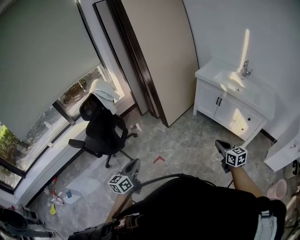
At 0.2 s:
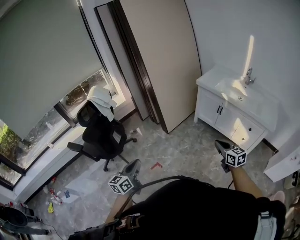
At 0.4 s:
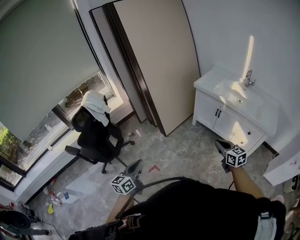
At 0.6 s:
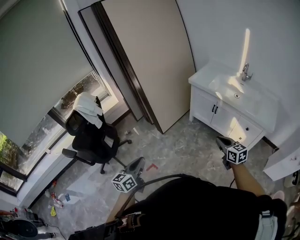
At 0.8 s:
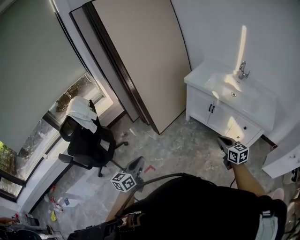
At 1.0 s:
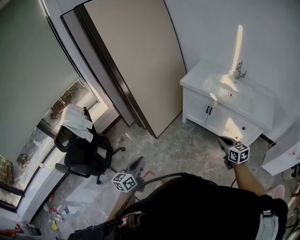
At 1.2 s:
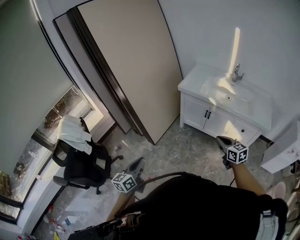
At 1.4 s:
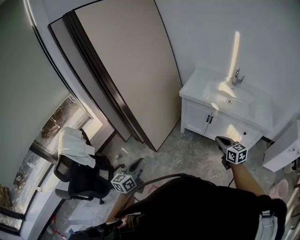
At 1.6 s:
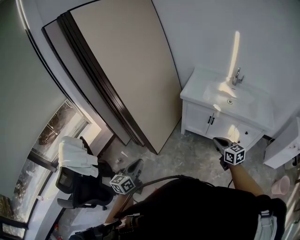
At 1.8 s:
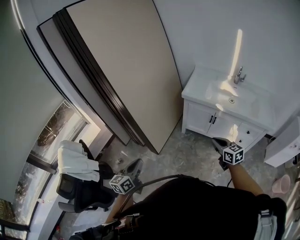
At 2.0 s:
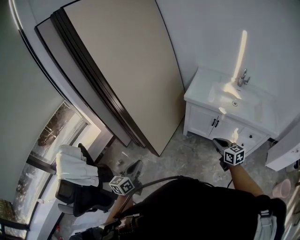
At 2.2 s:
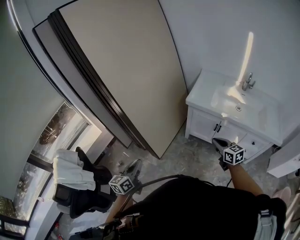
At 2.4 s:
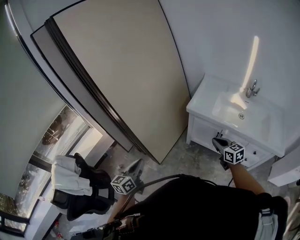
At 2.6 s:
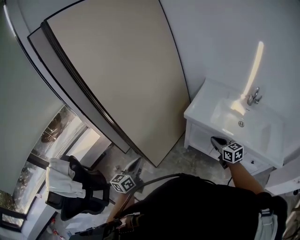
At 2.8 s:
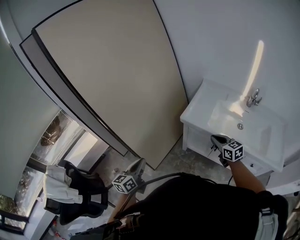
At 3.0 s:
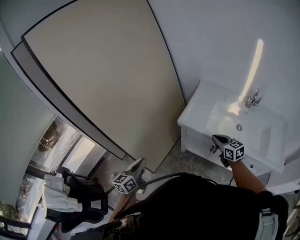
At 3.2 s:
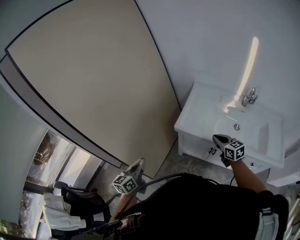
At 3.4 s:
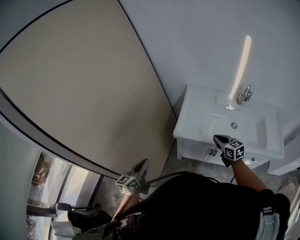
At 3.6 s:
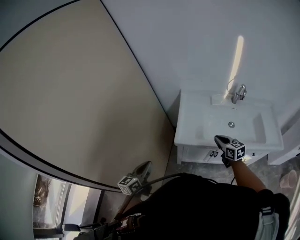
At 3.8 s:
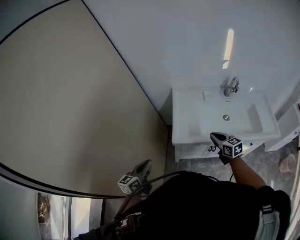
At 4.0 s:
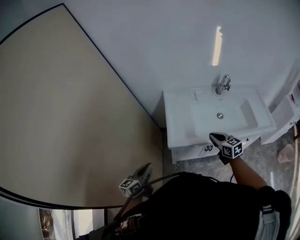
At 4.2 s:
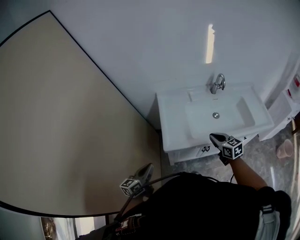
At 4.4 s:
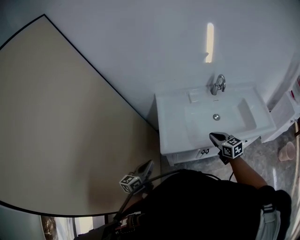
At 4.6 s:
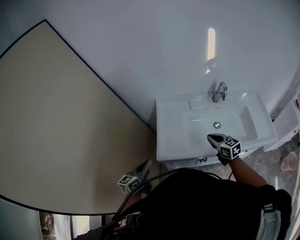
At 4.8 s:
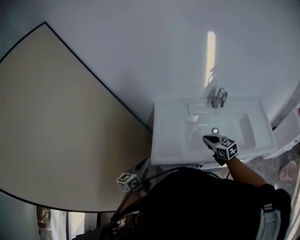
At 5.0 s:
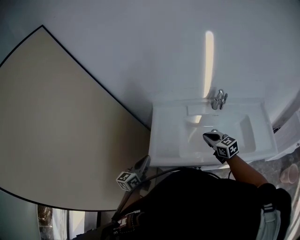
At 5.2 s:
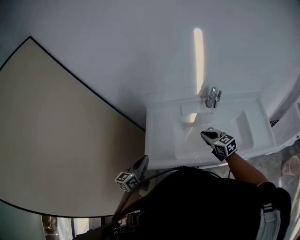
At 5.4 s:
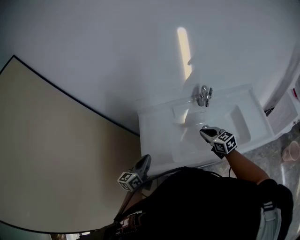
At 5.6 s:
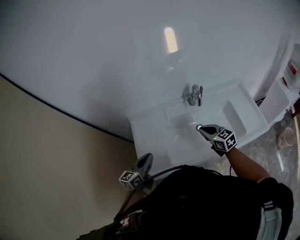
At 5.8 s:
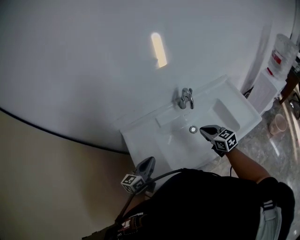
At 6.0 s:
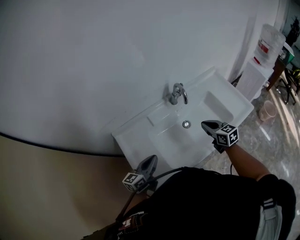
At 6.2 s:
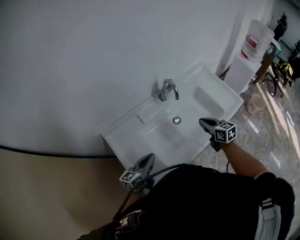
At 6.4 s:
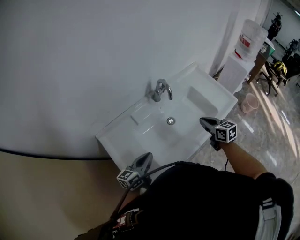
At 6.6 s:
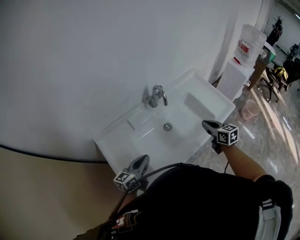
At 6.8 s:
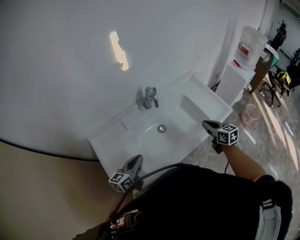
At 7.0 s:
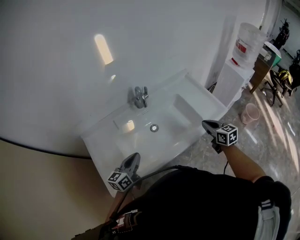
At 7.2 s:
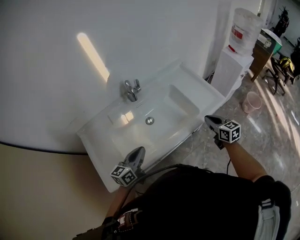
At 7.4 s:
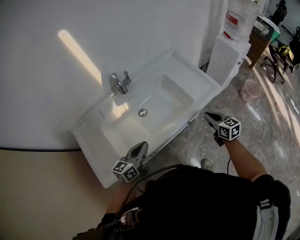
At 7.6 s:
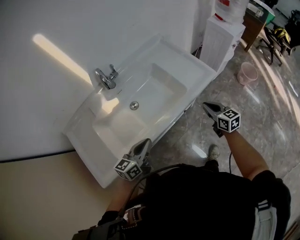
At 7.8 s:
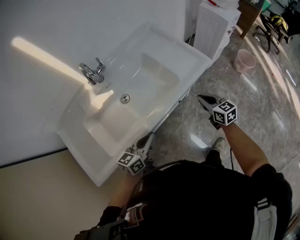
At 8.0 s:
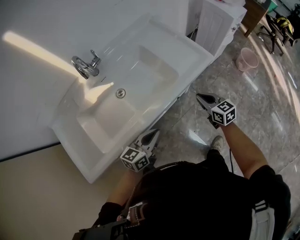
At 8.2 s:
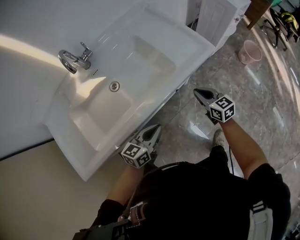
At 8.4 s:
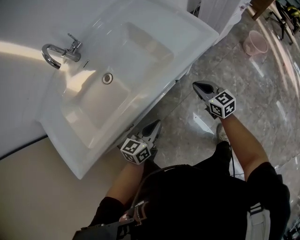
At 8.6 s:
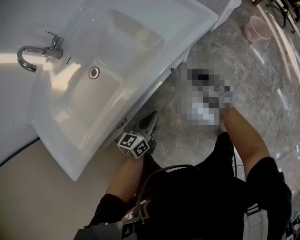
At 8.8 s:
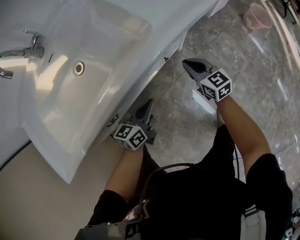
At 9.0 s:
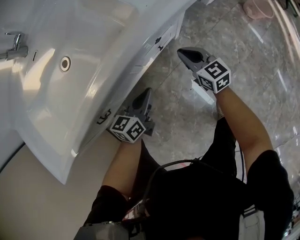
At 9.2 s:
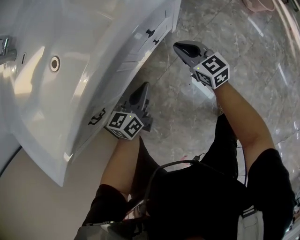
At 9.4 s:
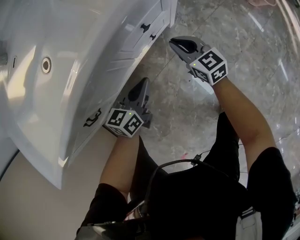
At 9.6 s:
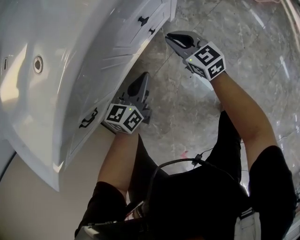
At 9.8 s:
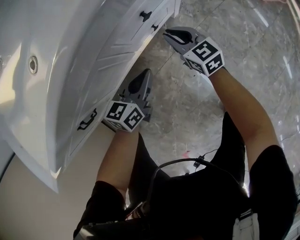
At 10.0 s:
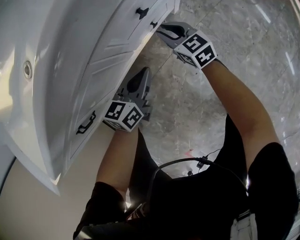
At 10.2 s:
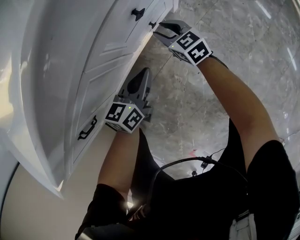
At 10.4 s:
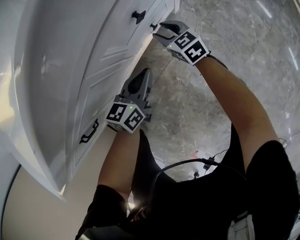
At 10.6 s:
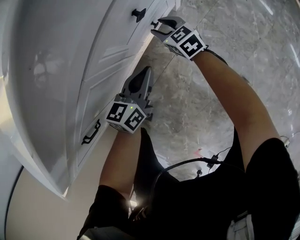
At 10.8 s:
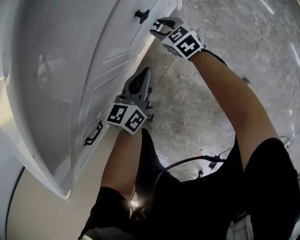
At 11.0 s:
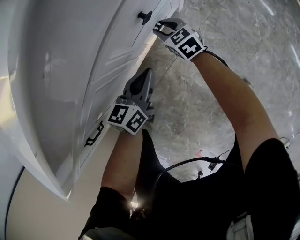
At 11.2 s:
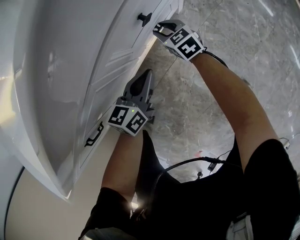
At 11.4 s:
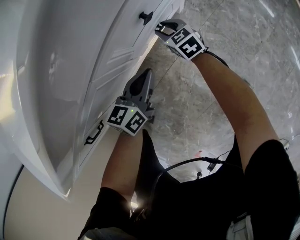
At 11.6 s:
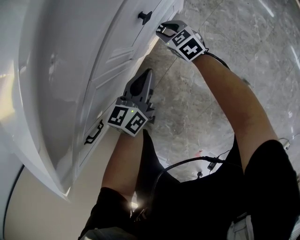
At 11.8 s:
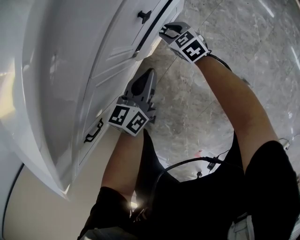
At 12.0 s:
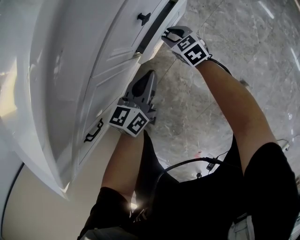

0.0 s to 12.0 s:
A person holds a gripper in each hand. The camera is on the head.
0.0 to 1.6 s: Both grippers move forward, some 40 cm.
1.6 to 3.0 s: The right gripper heads forward, covering roughly 40 cm; the left gripper is displaced forward and to the right by about 40 cm.
3.0 to 4.4 s: The left gripper moves some 35 cm, and swivels roughly 40 degrees; the right gripper ends up approximately 15 cm from where it was, and changes its angle by about 30 degrees.
4.4 to 6.0 s: The right gripper moves approximately 25 cm, and changes its angle by about 20 degrees; the left gripper ends up some 35 cm from where it was, and swivels some 30 degrees.
6.0 to 7.6 s: Both grippers move to the right, roughly 35 cm.
7.6 to 9.0 s: The left gripper shifts some 40 cm downward and to the right. The right gripper travels downward by about 30 cm.
9.0 to 10.4 s: The right gripper travels downward by roughly 25 cm, and opens up, while the left gripper heads downward, covering about 15 cm.
10.4 to 12.0 s: The grippers move only a little.

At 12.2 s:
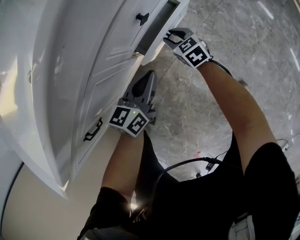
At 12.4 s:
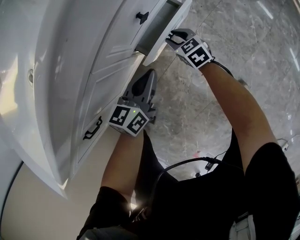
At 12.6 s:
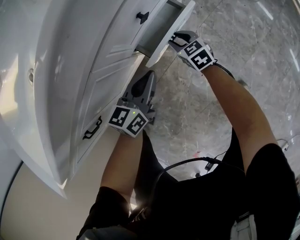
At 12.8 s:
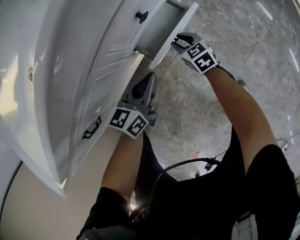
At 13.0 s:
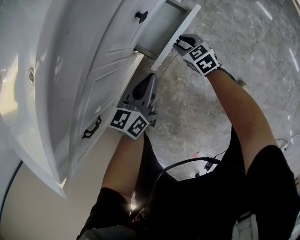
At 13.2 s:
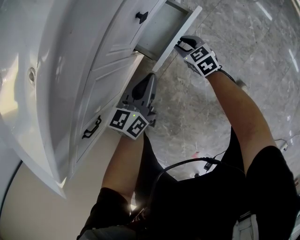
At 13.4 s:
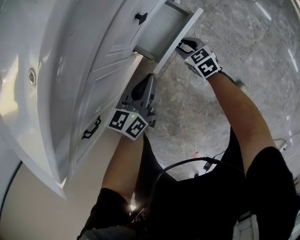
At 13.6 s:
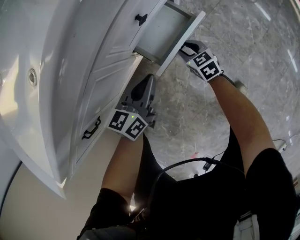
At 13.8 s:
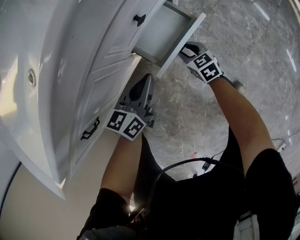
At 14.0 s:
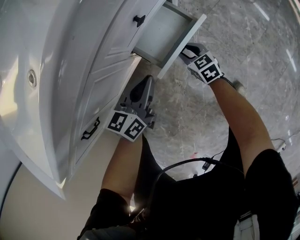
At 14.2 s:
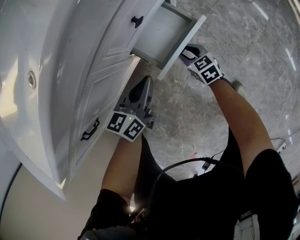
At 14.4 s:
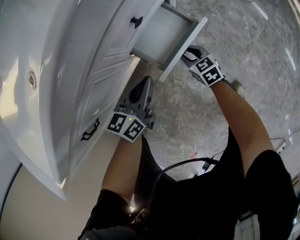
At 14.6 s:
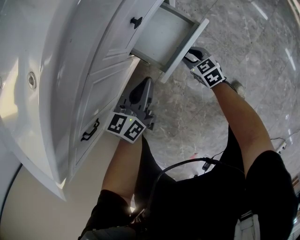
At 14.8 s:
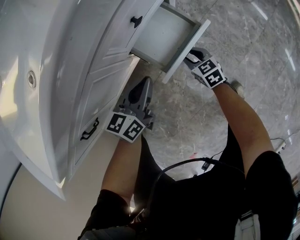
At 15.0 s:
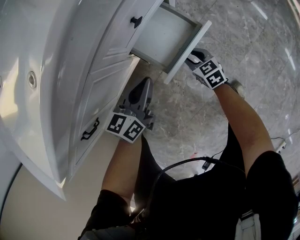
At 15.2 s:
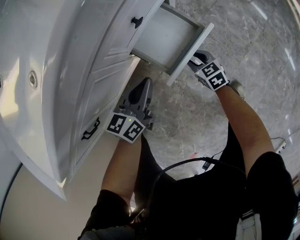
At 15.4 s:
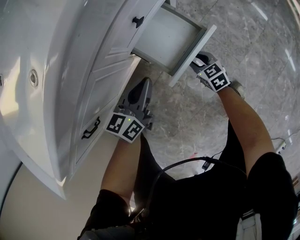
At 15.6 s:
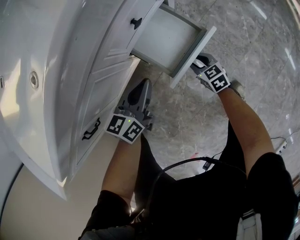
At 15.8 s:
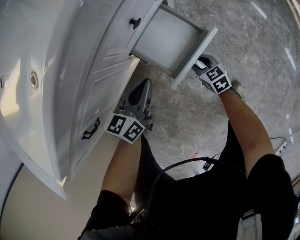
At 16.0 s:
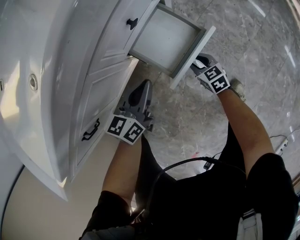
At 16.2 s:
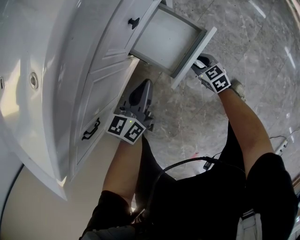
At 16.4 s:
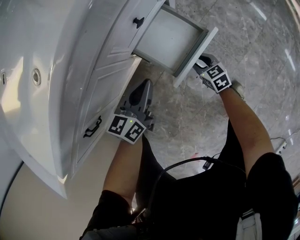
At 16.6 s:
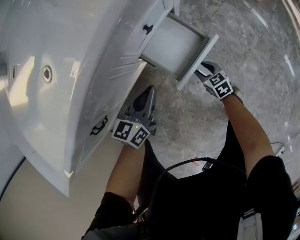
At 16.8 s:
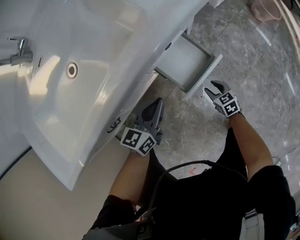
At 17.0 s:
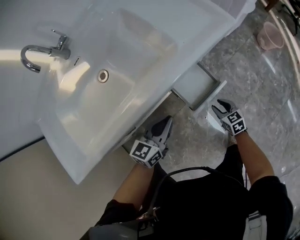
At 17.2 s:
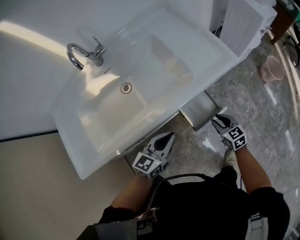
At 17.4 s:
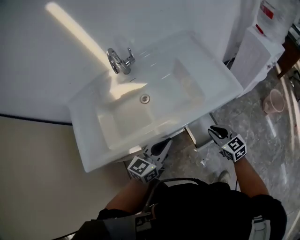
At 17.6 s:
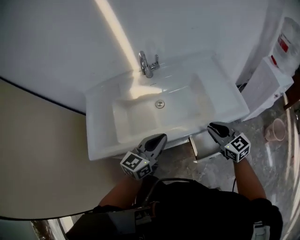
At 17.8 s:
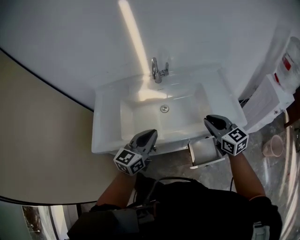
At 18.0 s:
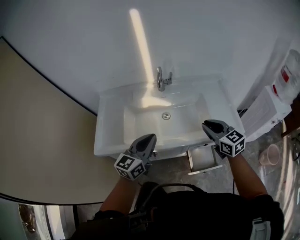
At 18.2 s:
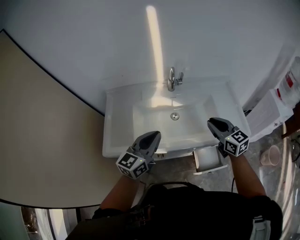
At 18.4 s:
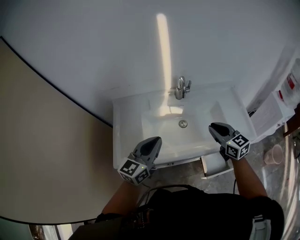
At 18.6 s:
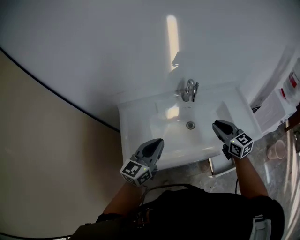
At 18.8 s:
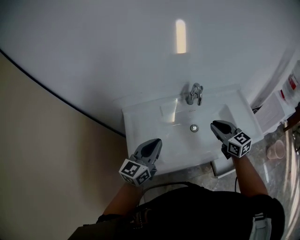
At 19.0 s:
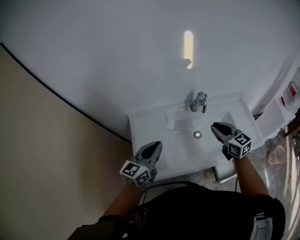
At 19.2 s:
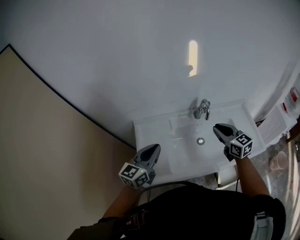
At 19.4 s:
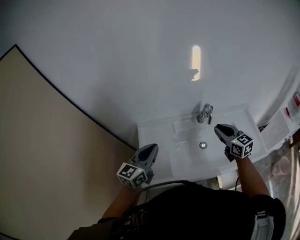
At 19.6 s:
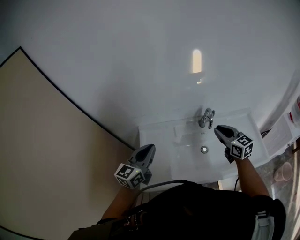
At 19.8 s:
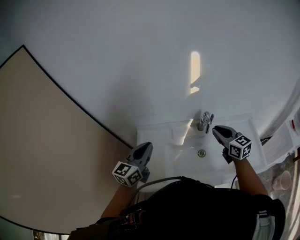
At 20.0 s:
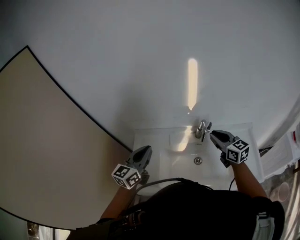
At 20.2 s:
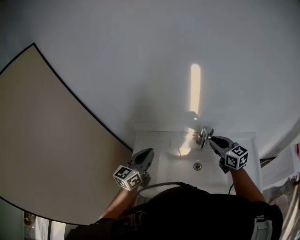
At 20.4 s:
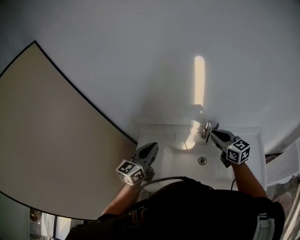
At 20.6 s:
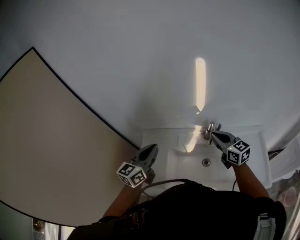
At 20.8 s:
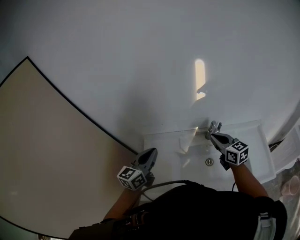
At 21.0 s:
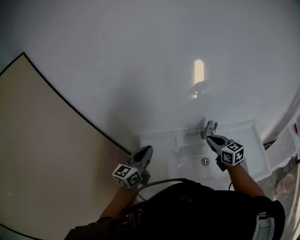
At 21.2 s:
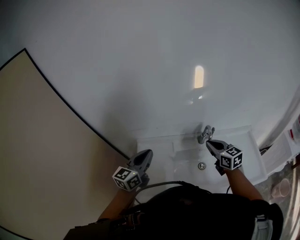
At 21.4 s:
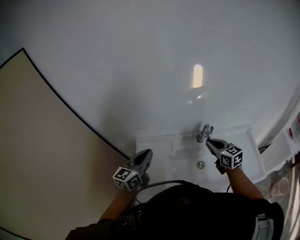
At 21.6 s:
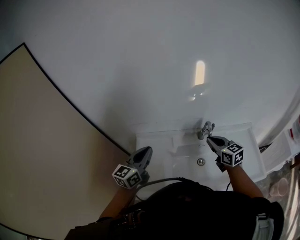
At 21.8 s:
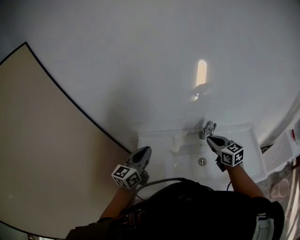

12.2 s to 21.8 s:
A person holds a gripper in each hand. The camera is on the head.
12.2 to 13.8 s: The right gripper is displaced backward and to the right by some 10 cm.
13.8 to 15.4 s: The right gripper changes place by roughly 5 cm.
15.4 to 17.0 s: The grippers both shift upward by approximately 20 cm.
17.0 to 18.6 s: The two grippers go roughly 50 cm upward. The left gripper swivels approximately 30 degrees. The right gripper tips its fingers upward by approximately 30 degrees, and closes.
18.6 to 20.2 s: The grippers both shift forward and upward by about 15 cm. The left gripper reaches roughly 10 cm to the left, then returns.
20.2 to 21.8 s: Both grippers move to the left, about 10 cm.

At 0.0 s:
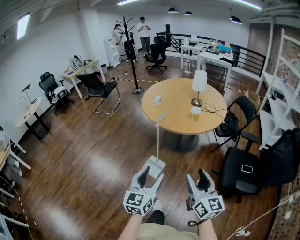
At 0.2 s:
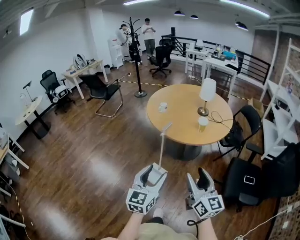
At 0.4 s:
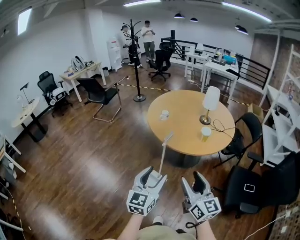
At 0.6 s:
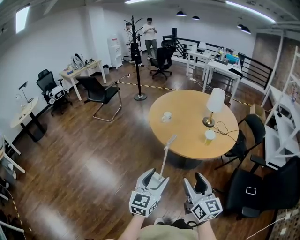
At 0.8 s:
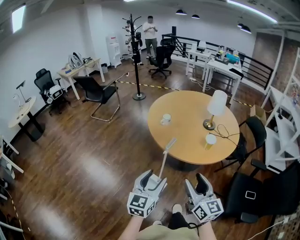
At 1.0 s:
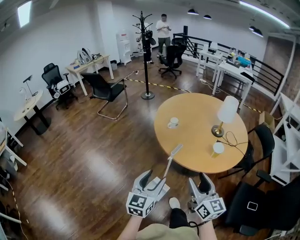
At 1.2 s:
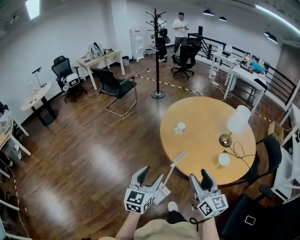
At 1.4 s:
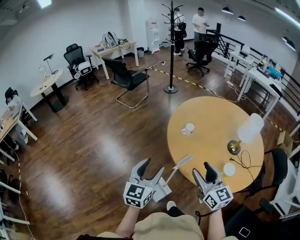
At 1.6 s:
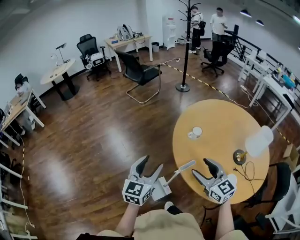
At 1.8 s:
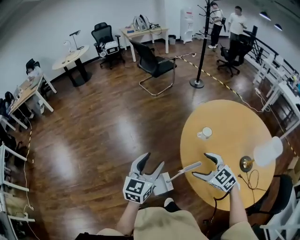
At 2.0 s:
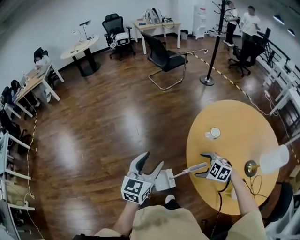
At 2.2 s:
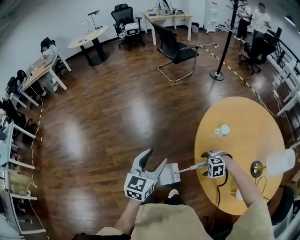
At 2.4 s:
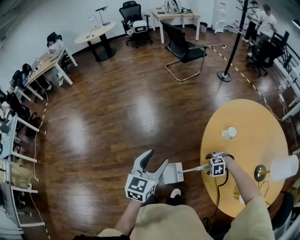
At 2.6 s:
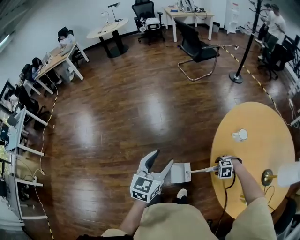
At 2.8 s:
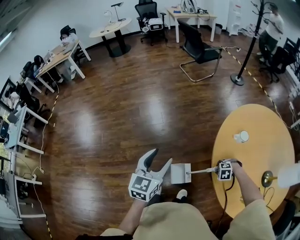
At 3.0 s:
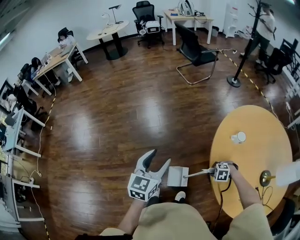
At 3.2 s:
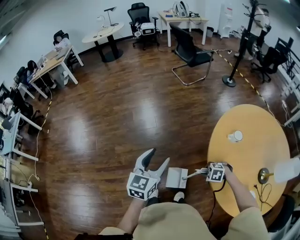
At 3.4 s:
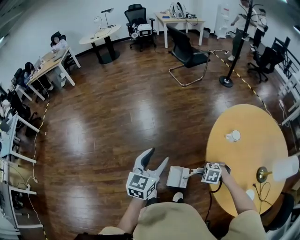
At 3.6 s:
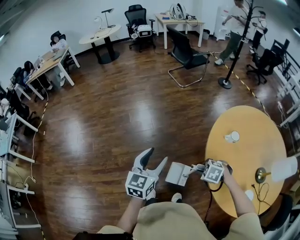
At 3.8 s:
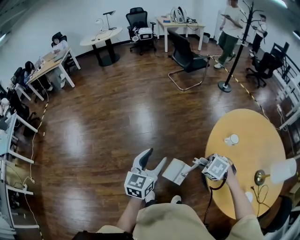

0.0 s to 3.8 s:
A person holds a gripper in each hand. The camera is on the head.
0.0 to 1.2 s: Both grippers travel together forward, about 35 cm.
1.2 to 2.6 s: The right gripper moves downward, approximately 35 cm, and points its fingers approximately 90 degrees further downward. The left gripper ends up some 15 cm from where it was, and turns by approximately 40 degrees.
2.6 to 3.8 s: The right gripper moves upward, some 20 cm, rotates about 40 degrees, and closes.
